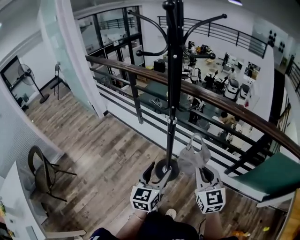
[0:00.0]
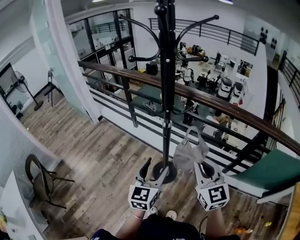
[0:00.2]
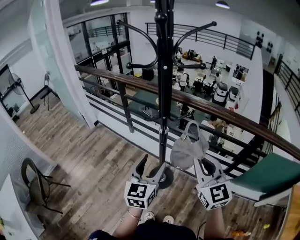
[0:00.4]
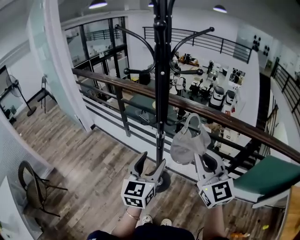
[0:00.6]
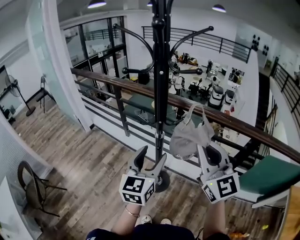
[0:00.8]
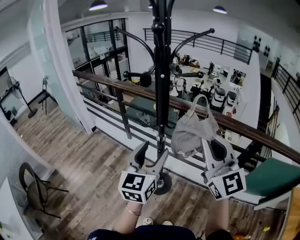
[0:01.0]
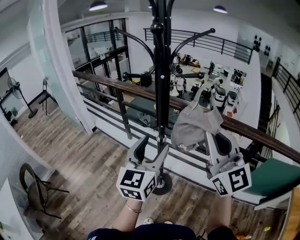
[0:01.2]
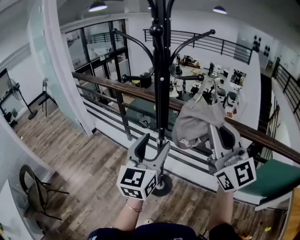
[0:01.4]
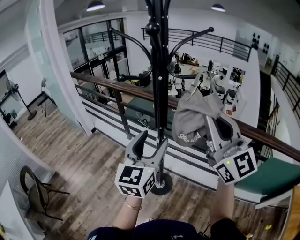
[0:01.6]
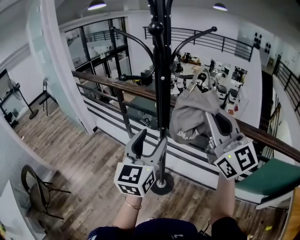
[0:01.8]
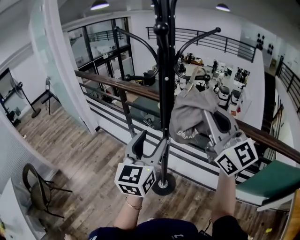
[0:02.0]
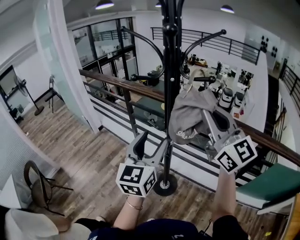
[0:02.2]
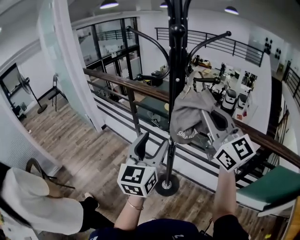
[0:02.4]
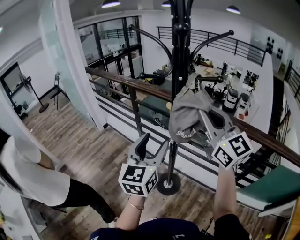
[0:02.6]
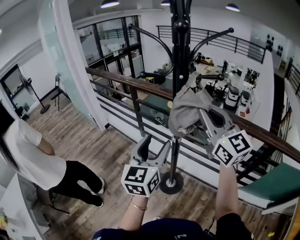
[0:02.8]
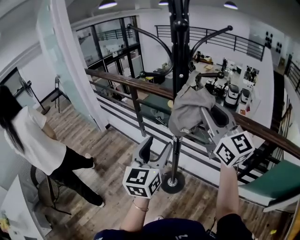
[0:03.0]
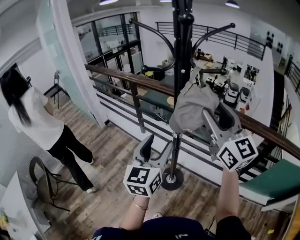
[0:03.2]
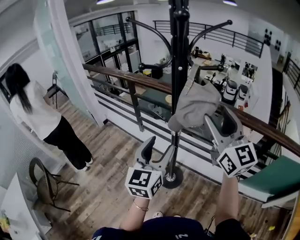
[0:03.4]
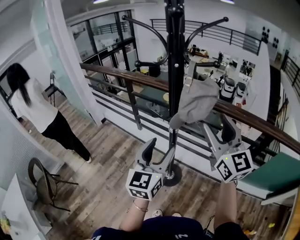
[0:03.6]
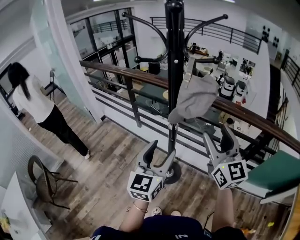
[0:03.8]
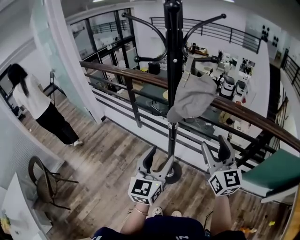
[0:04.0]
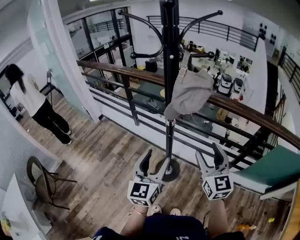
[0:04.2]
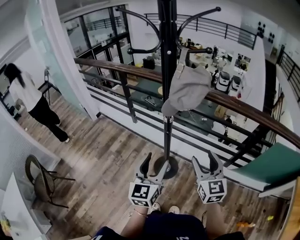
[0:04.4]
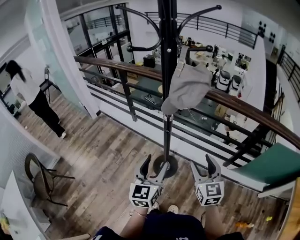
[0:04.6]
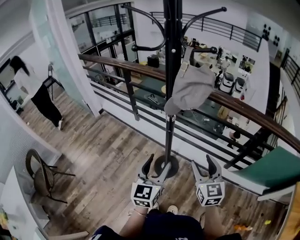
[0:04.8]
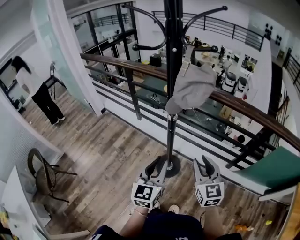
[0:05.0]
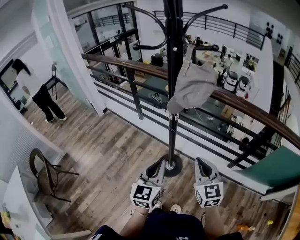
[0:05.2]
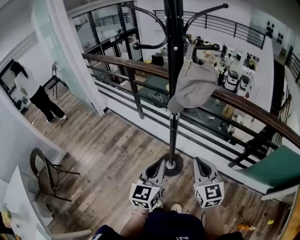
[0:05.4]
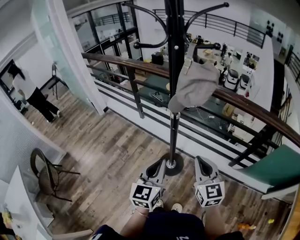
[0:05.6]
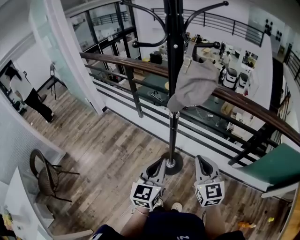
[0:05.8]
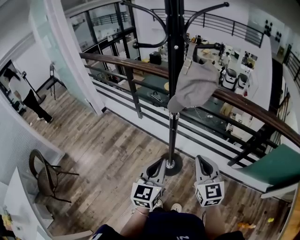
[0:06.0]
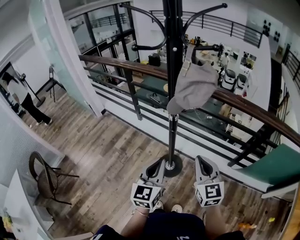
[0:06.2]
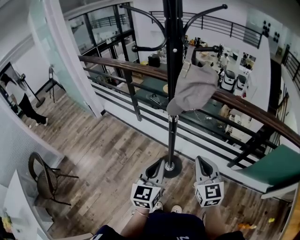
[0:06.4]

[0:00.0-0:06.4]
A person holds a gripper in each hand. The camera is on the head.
0:00.0 to 0:01.6: The right gripper is displaced upward by some 25 cm, and tips its fingers upward by some 30 degrees. Meanwhile the left gripper travels upward and forward by roughly 25 cm.
0:01.6 to 0:03.2: The left gripper ends up roughly 5 cm from where it was, while the right gripper ends up approximately 5 cm from where it was, and opens up.
0:03.2 to 0:04.8: The right gripper is displaced downward and backward by roughly 30 cm, and rotates some 30 degrees; the left gripper travels downward and backward by approximately 15 cm.
0:04.8 to 0:06.4: The left gripper closes up; the right gripper closes up.

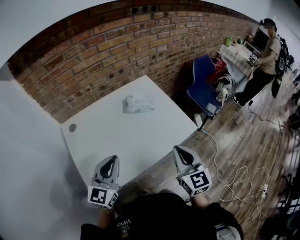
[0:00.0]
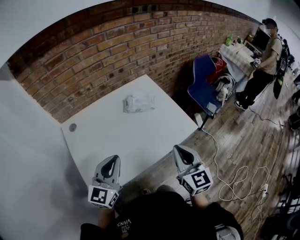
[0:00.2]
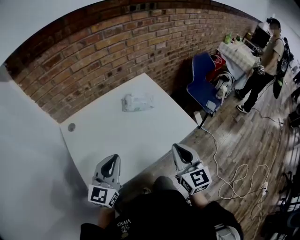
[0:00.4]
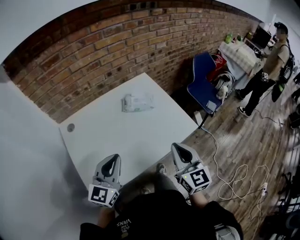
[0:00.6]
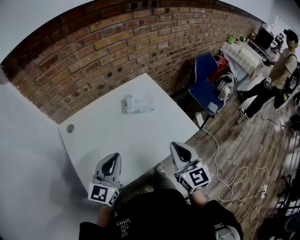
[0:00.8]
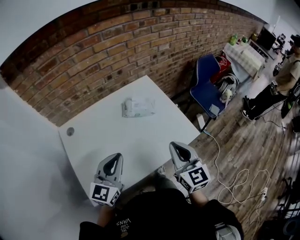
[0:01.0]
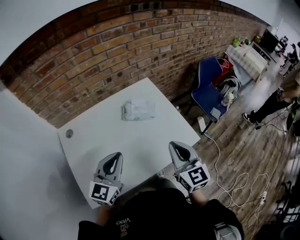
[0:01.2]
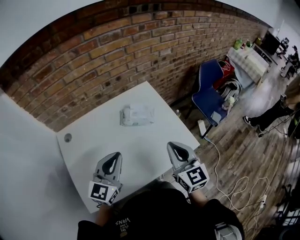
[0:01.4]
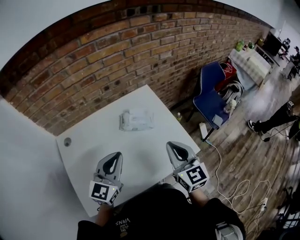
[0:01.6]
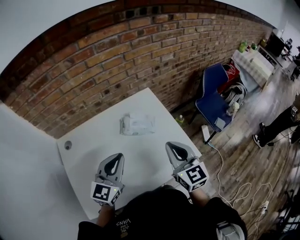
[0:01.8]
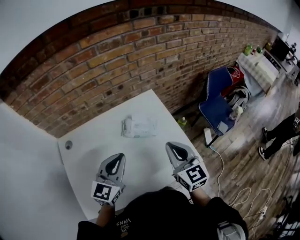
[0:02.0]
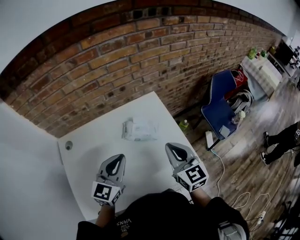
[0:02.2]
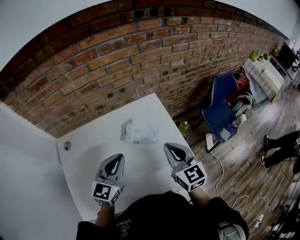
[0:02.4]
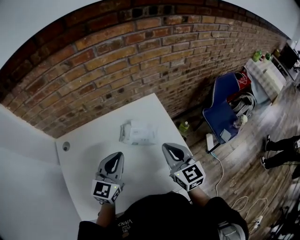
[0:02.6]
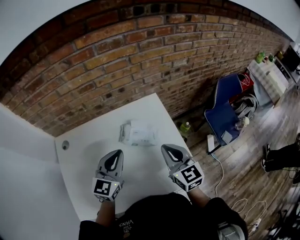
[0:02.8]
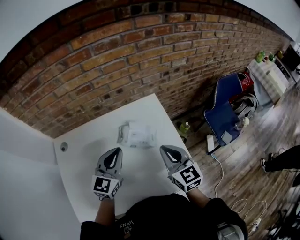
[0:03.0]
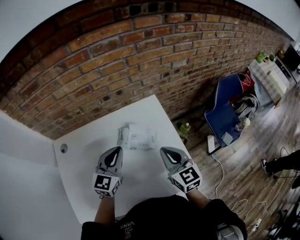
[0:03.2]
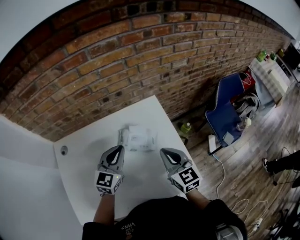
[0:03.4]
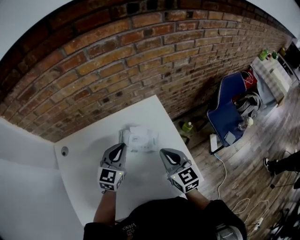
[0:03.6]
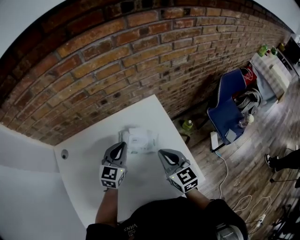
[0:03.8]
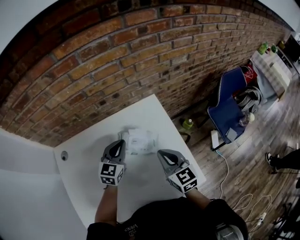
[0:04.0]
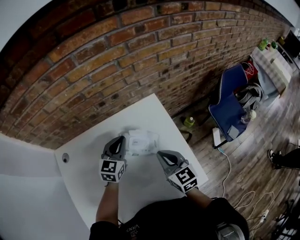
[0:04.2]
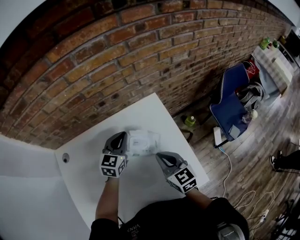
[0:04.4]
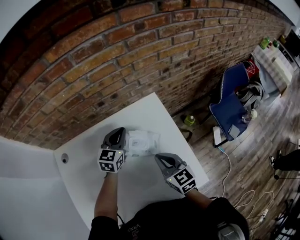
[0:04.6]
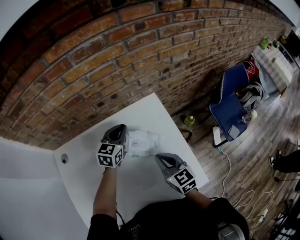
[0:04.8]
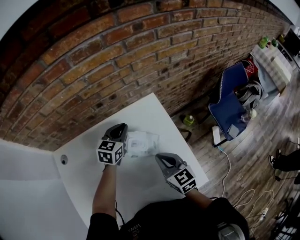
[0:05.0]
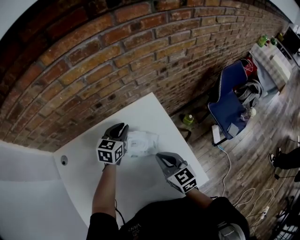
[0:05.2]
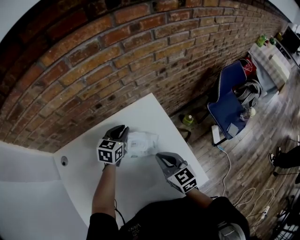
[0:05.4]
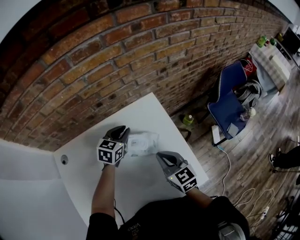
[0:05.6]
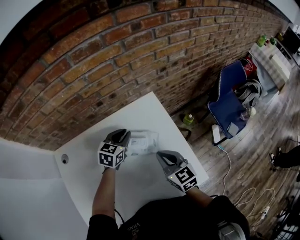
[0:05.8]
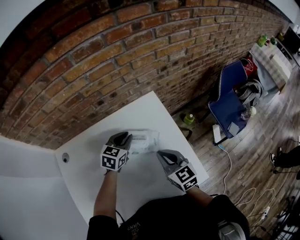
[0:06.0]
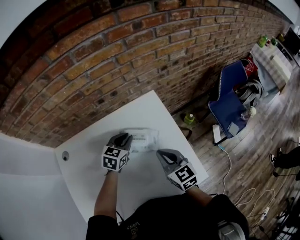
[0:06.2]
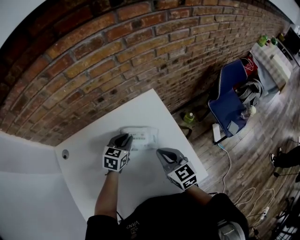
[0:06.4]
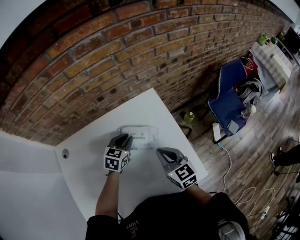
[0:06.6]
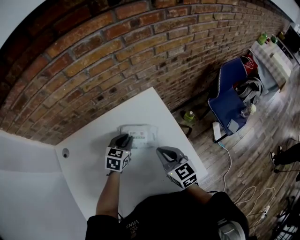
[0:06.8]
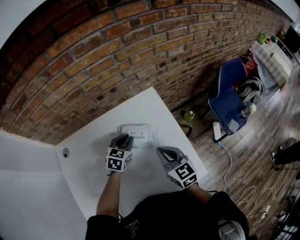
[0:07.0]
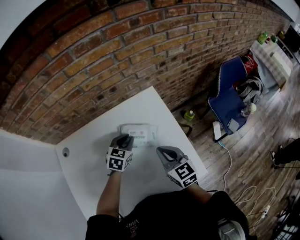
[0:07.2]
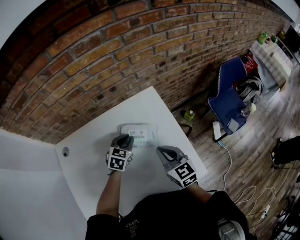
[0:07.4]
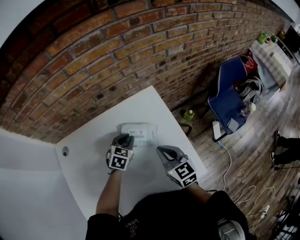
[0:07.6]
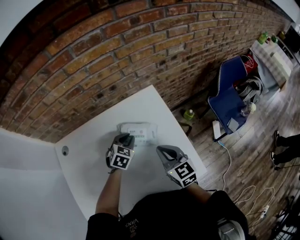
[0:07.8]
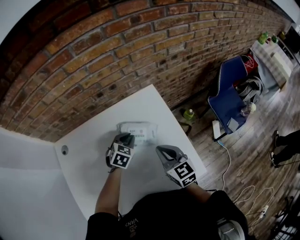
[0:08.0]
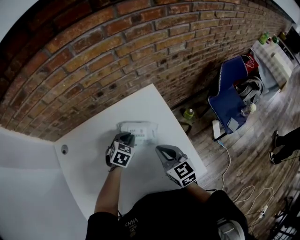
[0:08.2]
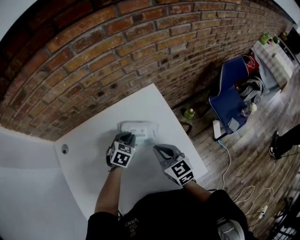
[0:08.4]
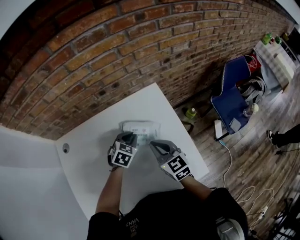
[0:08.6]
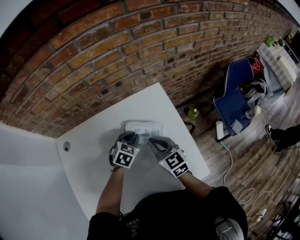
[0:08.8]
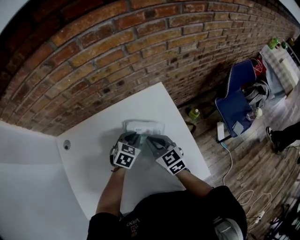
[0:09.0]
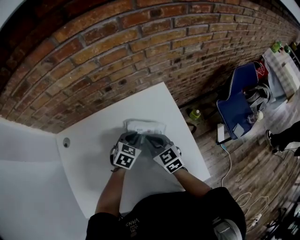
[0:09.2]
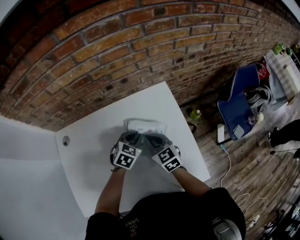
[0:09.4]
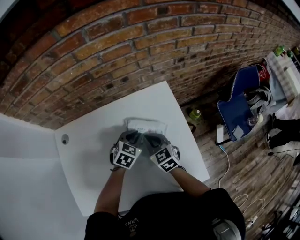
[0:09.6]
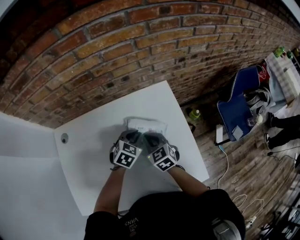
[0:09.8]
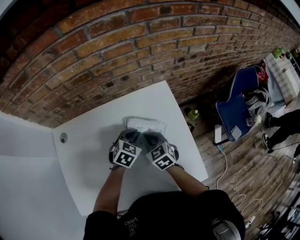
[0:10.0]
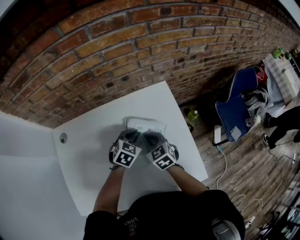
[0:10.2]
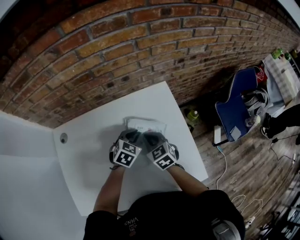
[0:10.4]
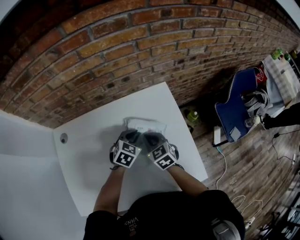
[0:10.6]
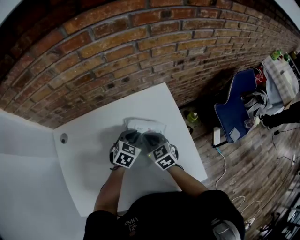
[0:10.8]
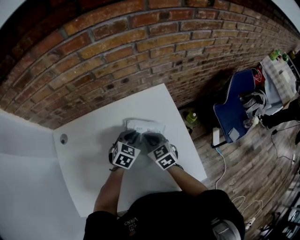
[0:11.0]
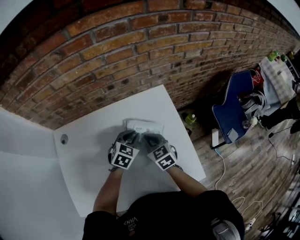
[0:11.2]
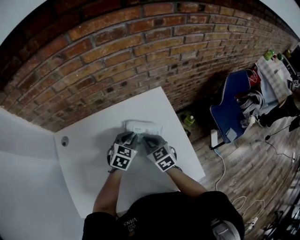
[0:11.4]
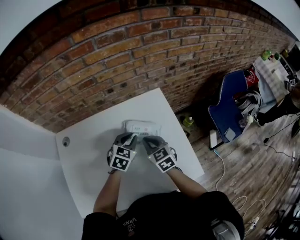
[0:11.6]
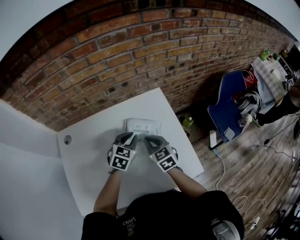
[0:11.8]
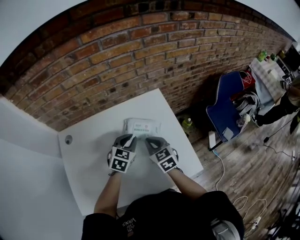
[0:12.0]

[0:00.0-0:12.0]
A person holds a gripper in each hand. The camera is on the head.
0:00.0 to 0:01.6: The left gripper travels forward and to the right by approximately 15 cm, while the right gripper travels forward by roughly 15 cm.
0:01.6 to 0:03.0: The right gripper shifts some 15 cm forward and downward, while the left gripper goes about 15 cm forward.
0:03.0 to 0:04.4: The right gripper shifts approximately 10 cm downward; the left gripper moves forward and downward, approximately 15 cm.
0:04.4 to 0:06.0: The grippers stay close to where they were, moving slightly.
0:06.0 to 0:07.6: The left gripper moves approximately 5 cm.
0:07.6 to 0:09.0: The right gripper is displaced to the left and forward by about 10 cm.
0:09.0 to 0:10.4: The right gripper changes place by some 5 cm.
0:10.4 to 0:12.0: The left gripper heads upward and backward, covering approximately 10 cm. Meanwhile the right gripper heads backward and upward, covering some 10 cm.

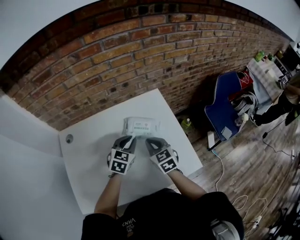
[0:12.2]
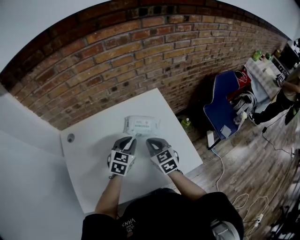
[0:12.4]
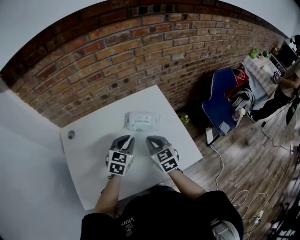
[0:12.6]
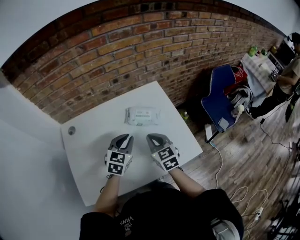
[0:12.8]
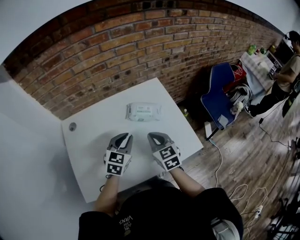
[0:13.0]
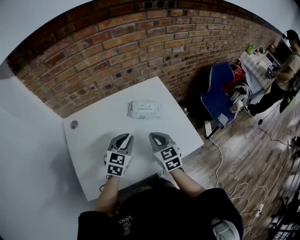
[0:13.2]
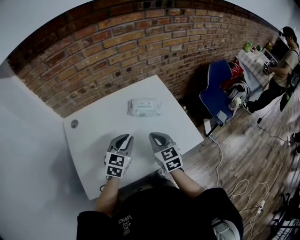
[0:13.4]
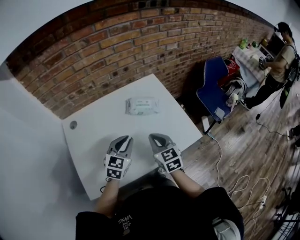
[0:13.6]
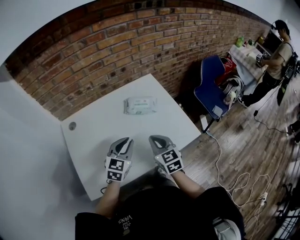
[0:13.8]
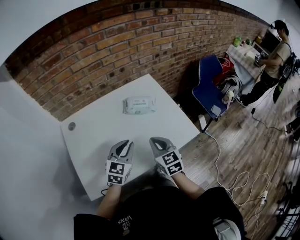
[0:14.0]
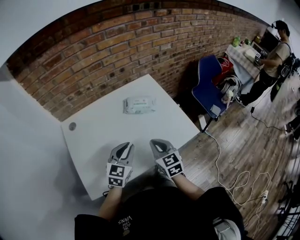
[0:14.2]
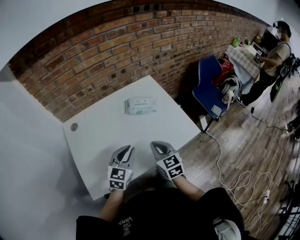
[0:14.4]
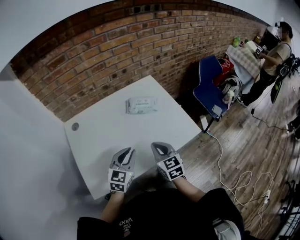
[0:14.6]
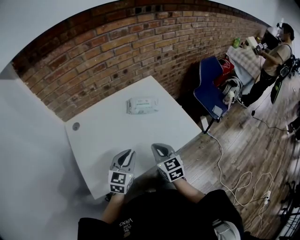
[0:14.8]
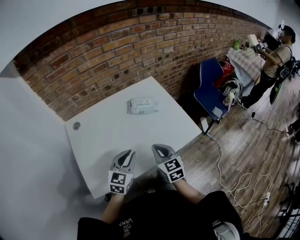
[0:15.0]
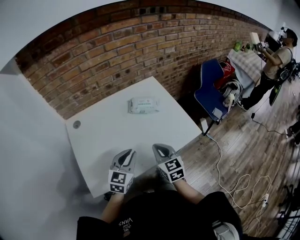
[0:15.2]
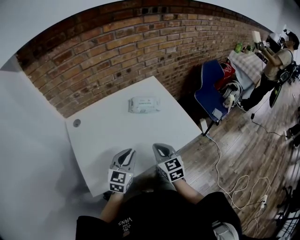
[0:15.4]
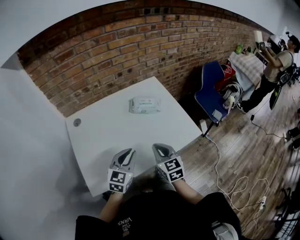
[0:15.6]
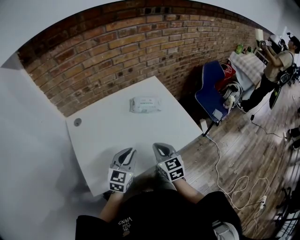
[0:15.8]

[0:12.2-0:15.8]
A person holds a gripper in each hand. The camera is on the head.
0:12.2 to 0:14.0: Both grippers move backward, some 20 cm.
0:14.0 to 0:15.8: The right gripper moves roughly 5 cm. Meanwhile the left gripper is displaced backward by about 5 cm.

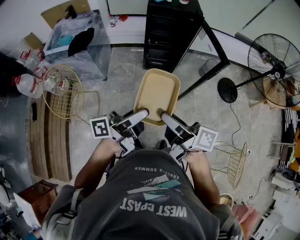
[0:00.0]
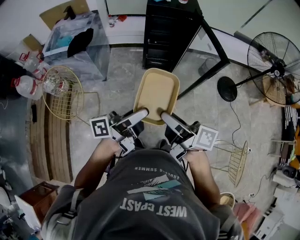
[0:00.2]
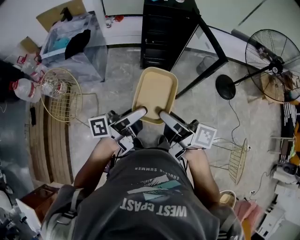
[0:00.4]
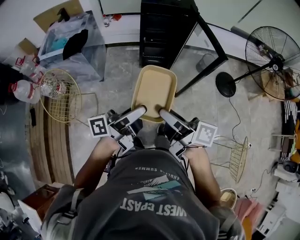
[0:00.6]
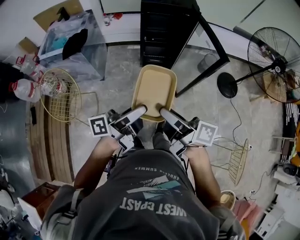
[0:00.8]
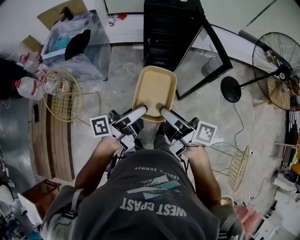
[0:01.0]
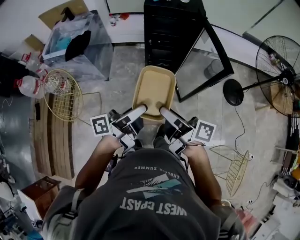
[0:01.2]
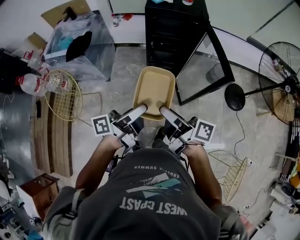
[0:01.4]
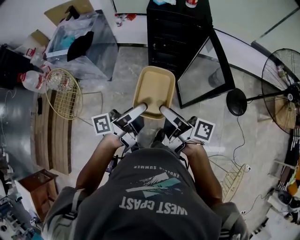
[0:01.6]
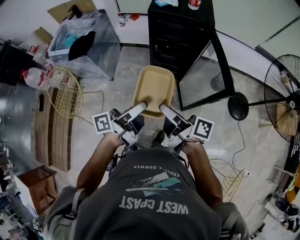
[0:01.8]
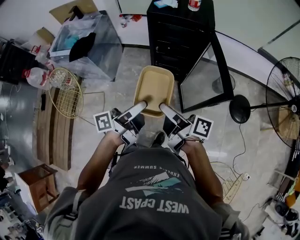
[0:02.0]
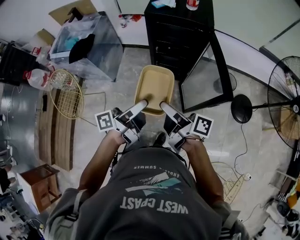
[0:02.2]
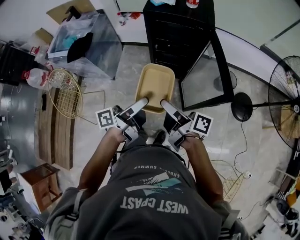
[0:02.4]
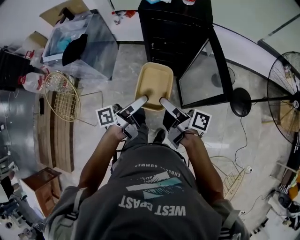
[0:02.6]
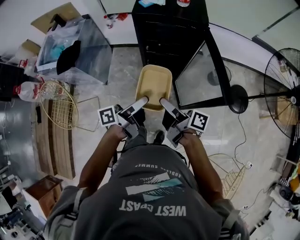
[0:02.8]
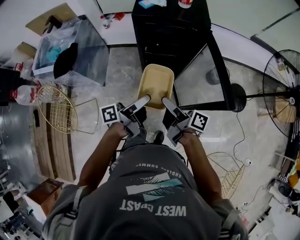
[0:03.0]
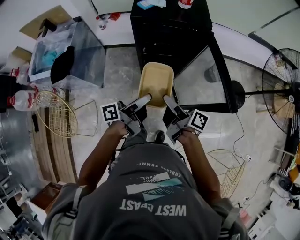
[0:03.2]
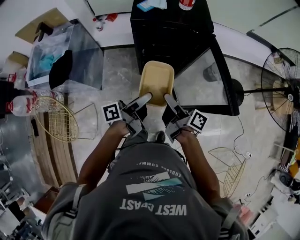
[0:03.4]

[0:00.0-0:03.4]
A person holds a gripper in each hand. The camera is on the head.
0:00.0 to 0:01.6: The right gripper changes place by some 15 cm.
0:01.6 to 0:03.4: The right gripper ends up about 20 cm from where it was, and rotates some 20 degrees.
